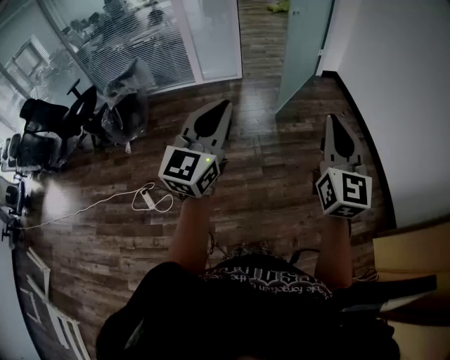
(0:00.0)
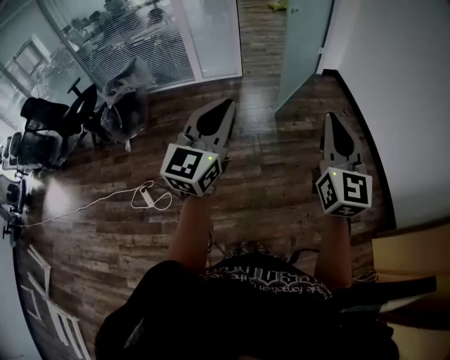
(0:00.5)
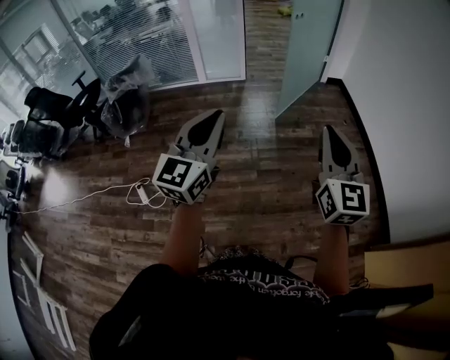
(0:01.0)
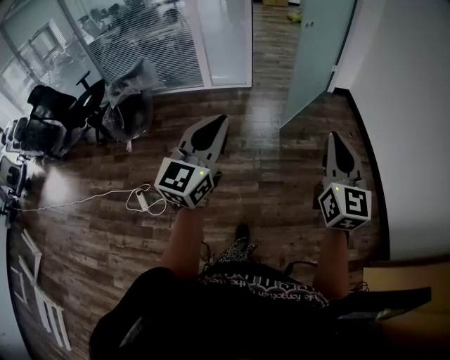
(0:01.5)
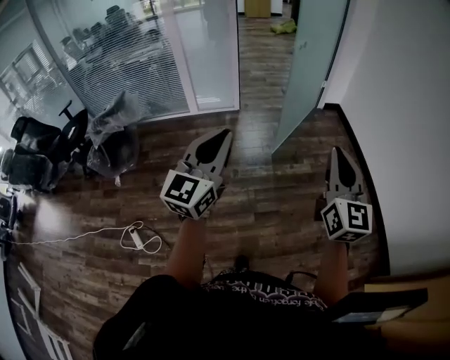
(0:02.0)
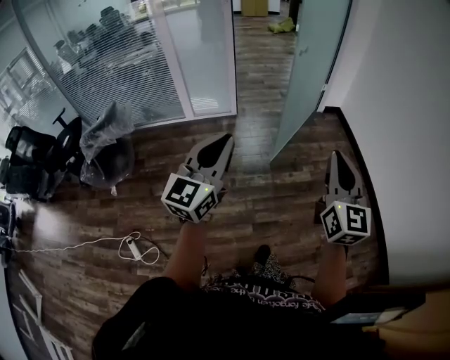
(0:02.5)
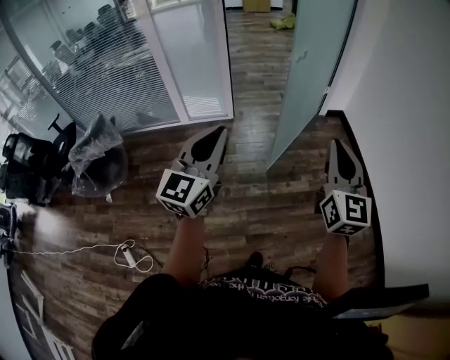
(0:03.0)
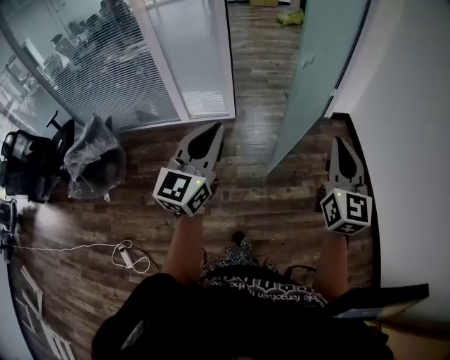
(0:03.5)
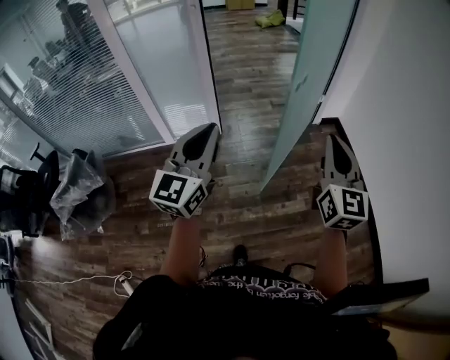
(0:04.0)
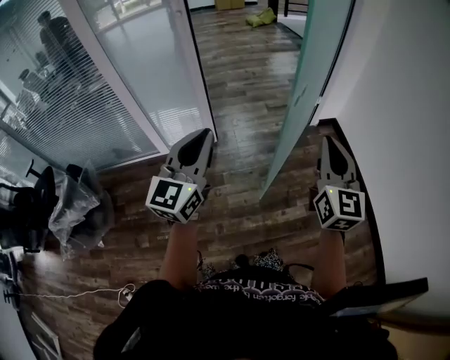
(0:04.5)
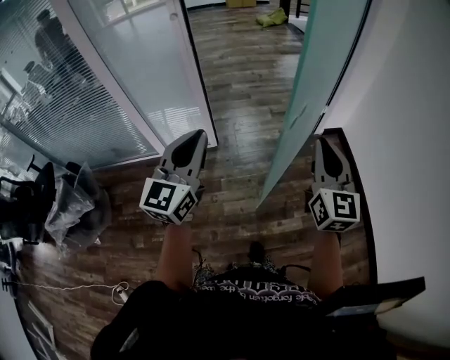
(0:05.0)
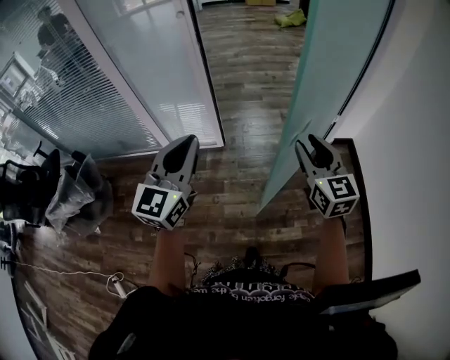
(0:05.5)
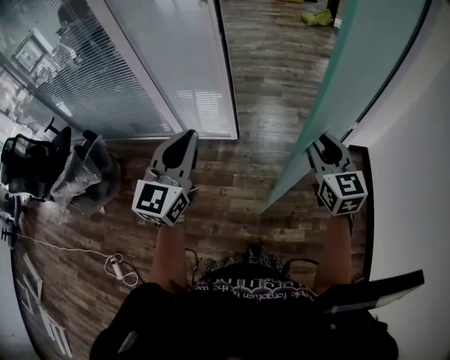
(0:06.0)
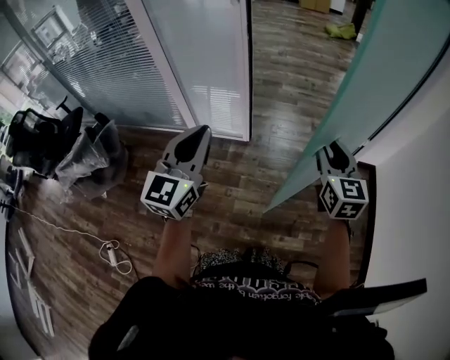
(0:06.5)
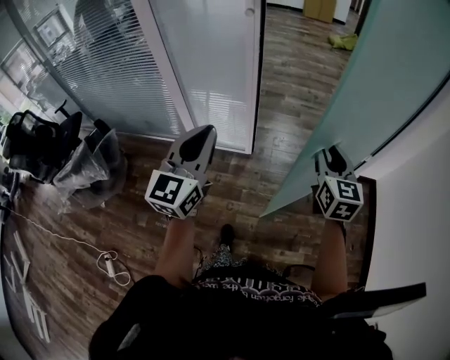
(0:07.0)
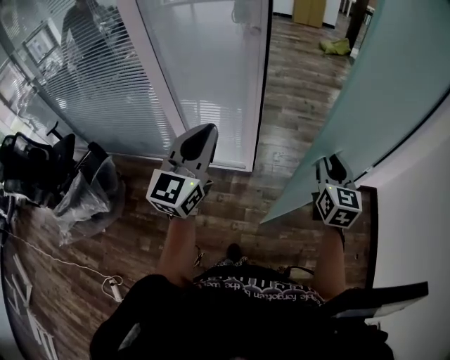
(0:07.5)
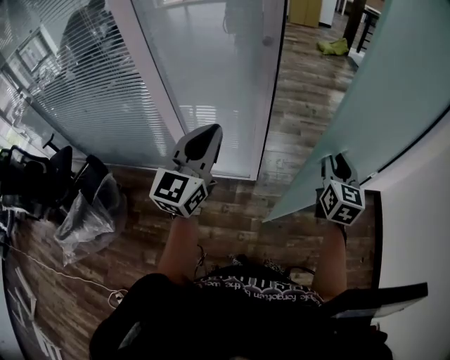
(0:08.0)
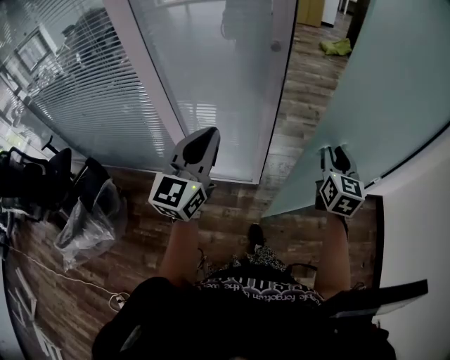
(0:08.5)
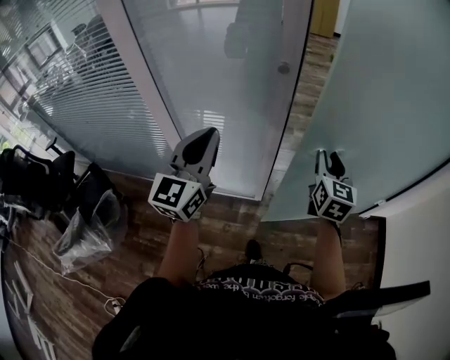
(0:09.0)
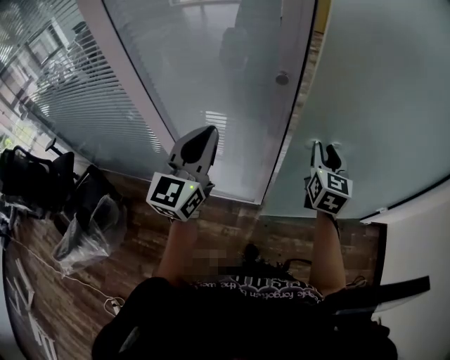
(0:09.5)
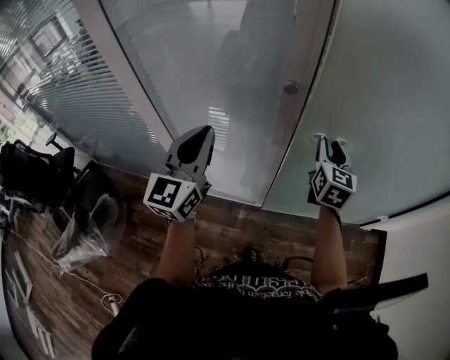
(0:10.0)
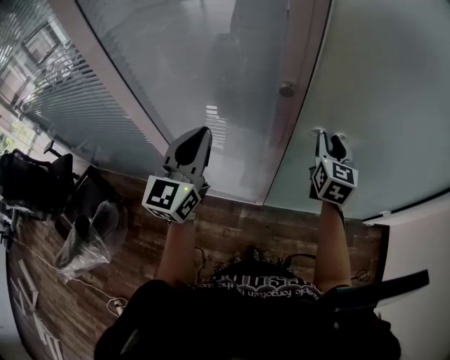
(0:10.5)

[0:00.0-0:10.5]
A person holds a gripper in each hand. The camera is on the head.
0:00.0 to 0:02.0: The two grippers go roughly 25 cm forward.
0:02.0 to 0:04.0: The two grippers travel together, forward, approximately 50 cm.
0:04.0 to 0:06.5: The right gripper is displaced forward by about 30 cm, turns by some 30 degrees, and opens up. Meanwhile the left gripper shifts some 20 cm forward, and changes its angle by some 20 degrees.
0:06.5 to 0:08.5: Both grippers move forward and to the left, about 30 cm.
0:08.5 to 0:10.5: The two grippers go about 20 cm forward.

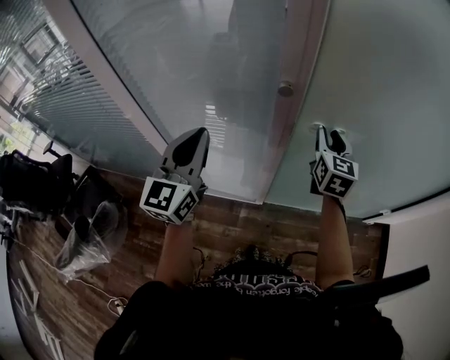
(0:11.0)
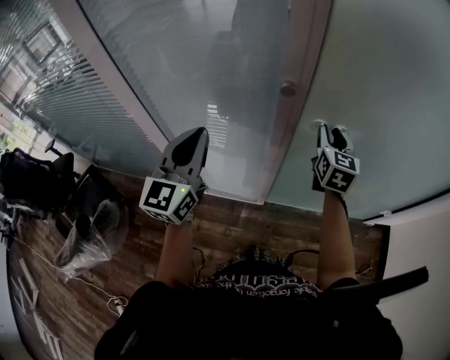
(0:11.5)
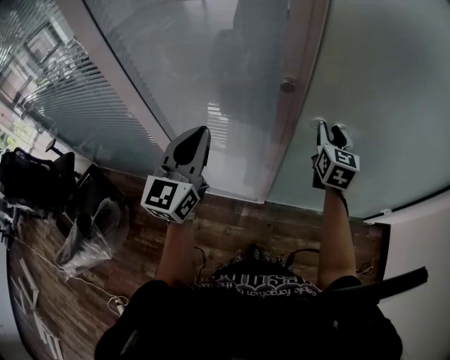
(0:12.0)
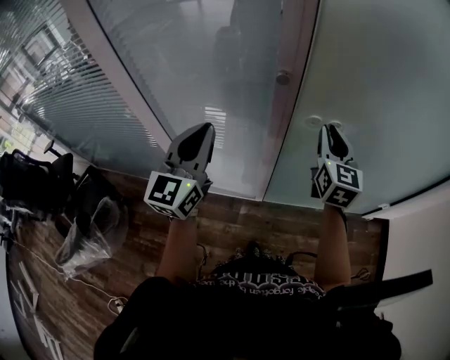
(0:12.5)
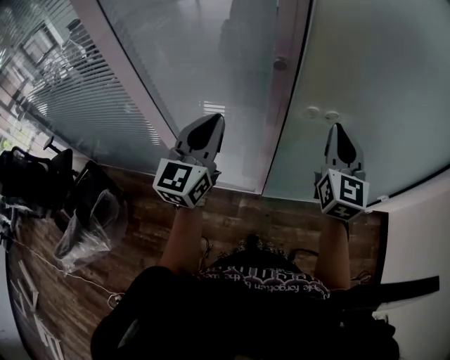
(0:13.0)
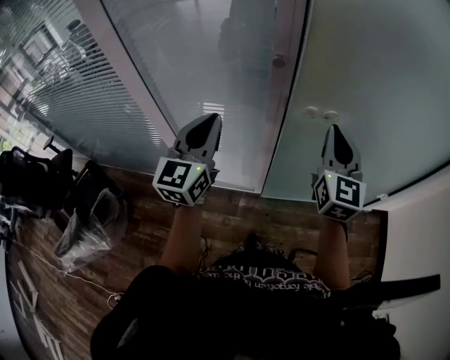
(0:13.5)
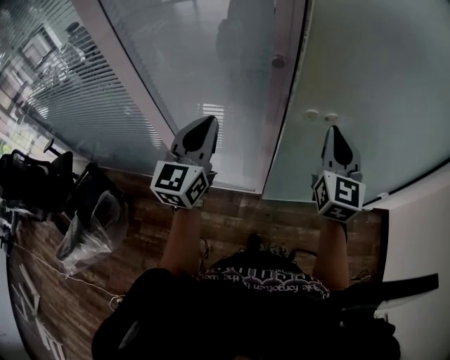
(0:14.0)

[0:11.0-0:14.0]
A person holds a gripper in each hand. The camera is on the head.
0:11.0 to 0:12.5: The right gripper travels backward by about 5 cm.
0:12.5 to 0:14.0: The right gripper is displaced backward by approximately 10 cm.

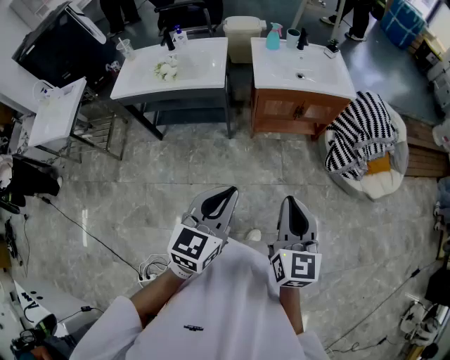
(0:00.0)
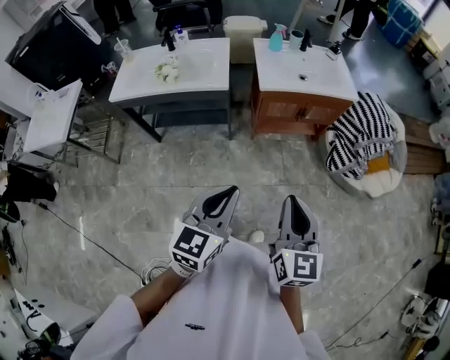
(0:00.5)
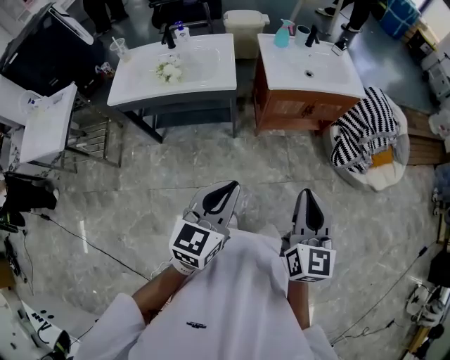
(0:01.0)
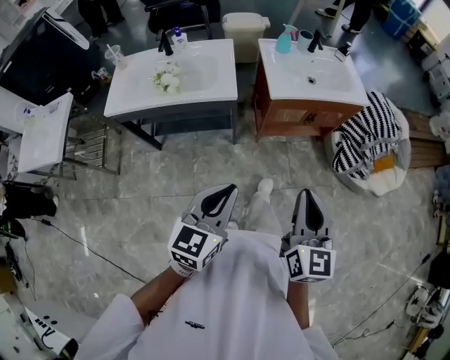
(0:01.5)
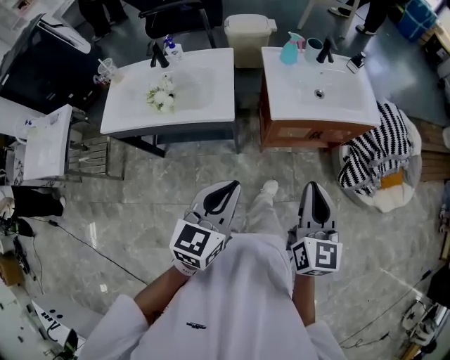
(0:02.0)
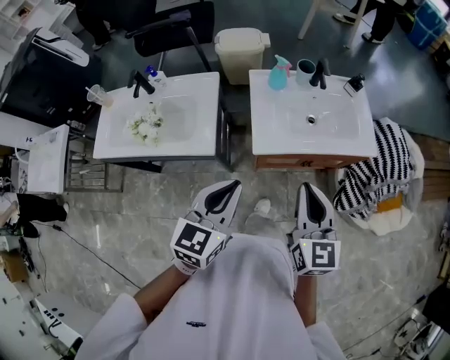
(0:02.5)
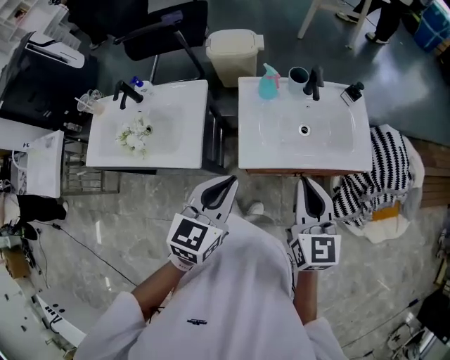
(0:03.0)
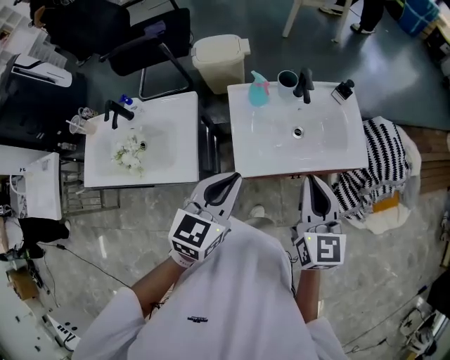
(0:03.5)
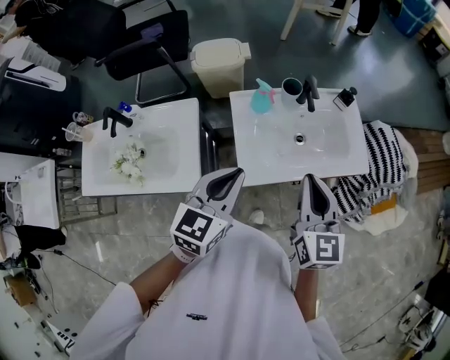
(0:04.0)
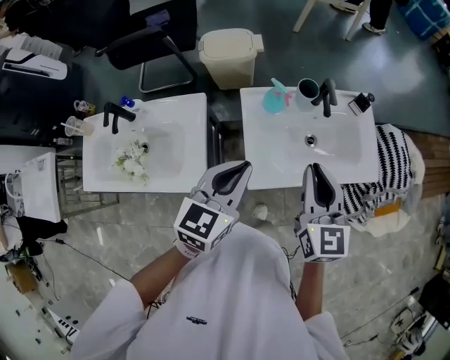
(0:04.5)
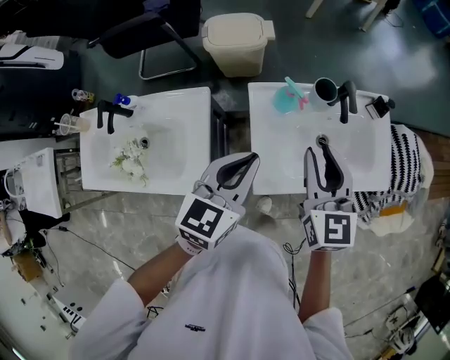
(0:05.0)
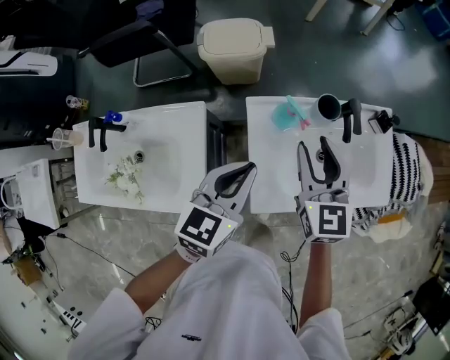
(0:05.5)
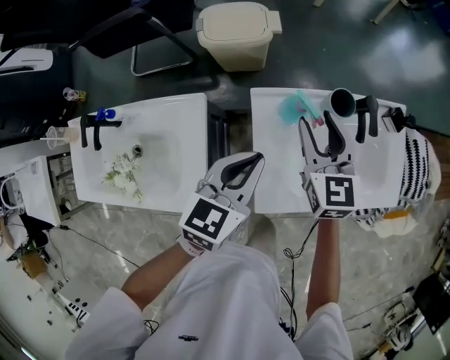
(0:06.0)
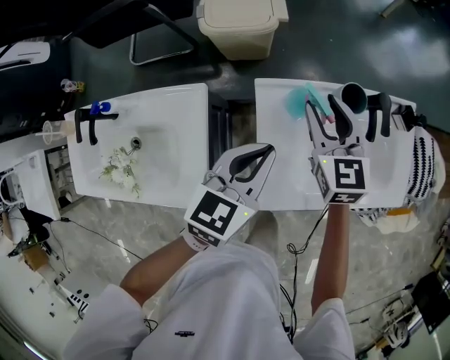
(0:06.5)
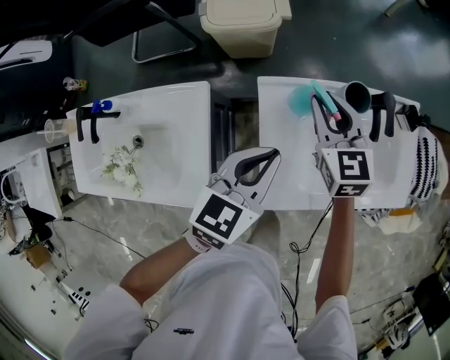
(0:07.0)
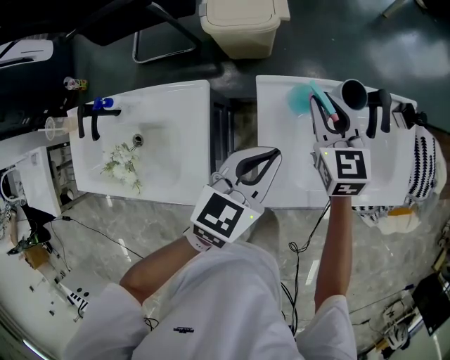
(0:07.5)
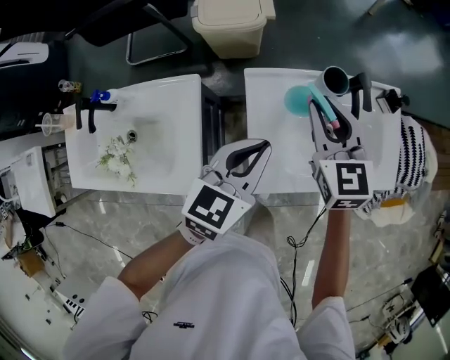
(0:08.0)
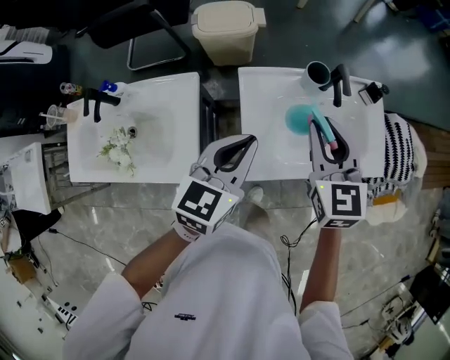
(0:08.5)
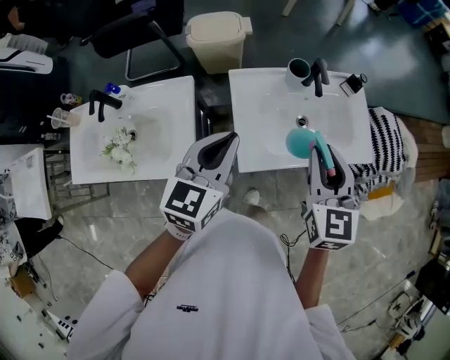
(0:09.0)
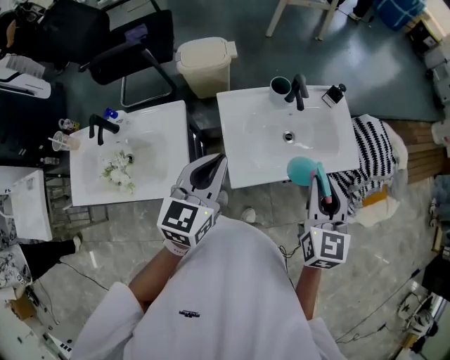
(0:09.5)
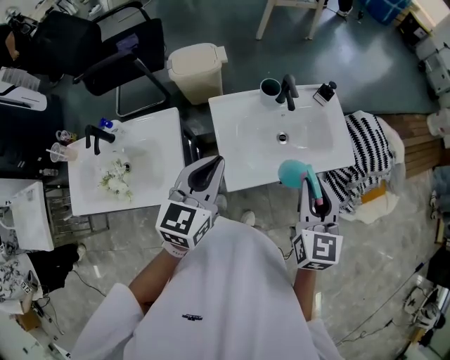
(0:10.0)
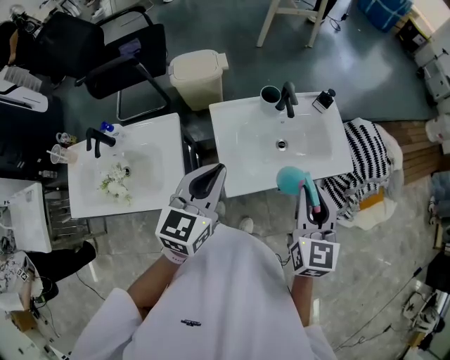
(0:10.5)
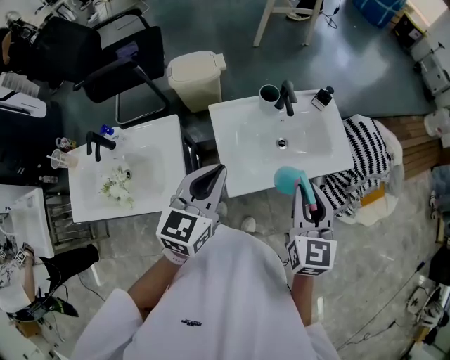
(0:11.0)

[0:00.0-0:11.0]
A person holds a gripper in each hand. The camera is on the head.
0:00.0 to 0:02.0: The left gripper heads forward and to the left, covering roughly 30 cm. Meanwhile the right gripper goes roughly 30 cm forward.
0:02.0 to 0:03.5: The two grippers go some 30 cm forward.
0:03.5 to 0:05.5: The left gripper shifts some 25 cm forward, to the left and downward. Meanwhile the right gripper heads forward and to the left, covering about 30 cm, and opens.
0:05.5 to 0:07.5: The left gripper is displaced downward by about 5 cm. Meanwhile the right gripper heads downward and forward, covering about 15 cm.
0:07.5 to 0:09.0: The right gripper is displaced backward, upward and to the right by some 30 cm; the left gripper moves upward and backward, roughly 20 cm.
0:09.0 to 0:11.0: The right gripper goes some 5 cm backward.

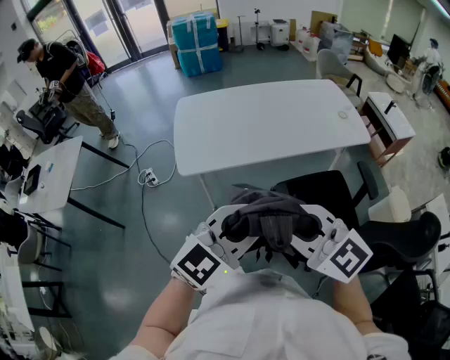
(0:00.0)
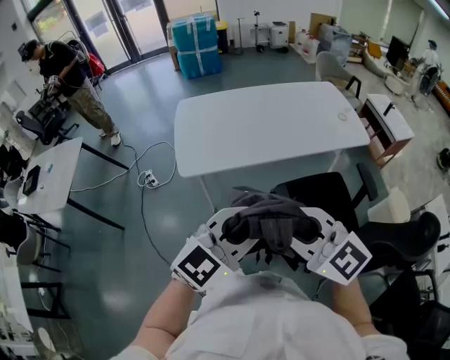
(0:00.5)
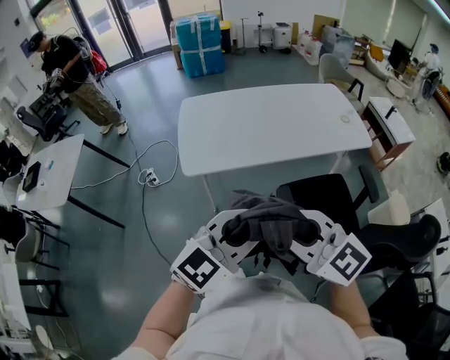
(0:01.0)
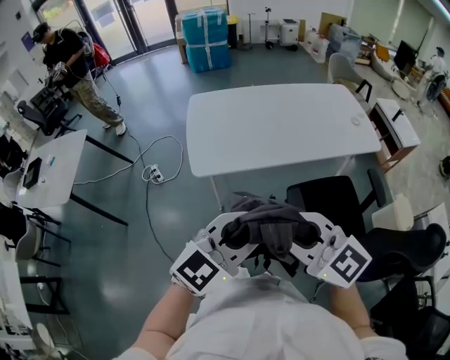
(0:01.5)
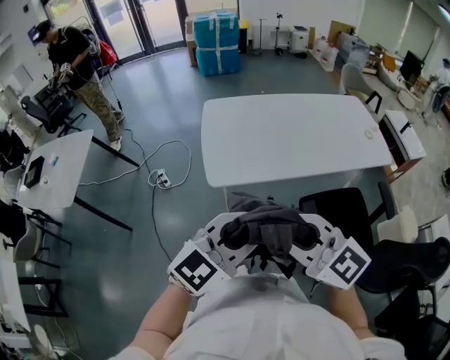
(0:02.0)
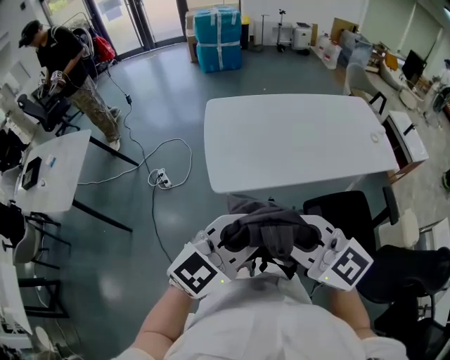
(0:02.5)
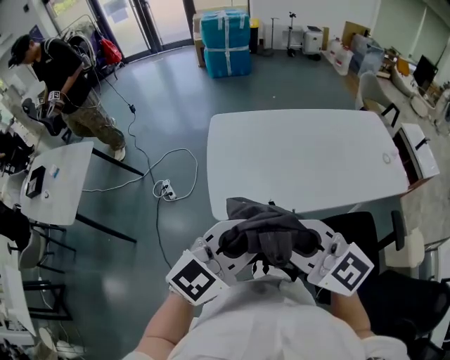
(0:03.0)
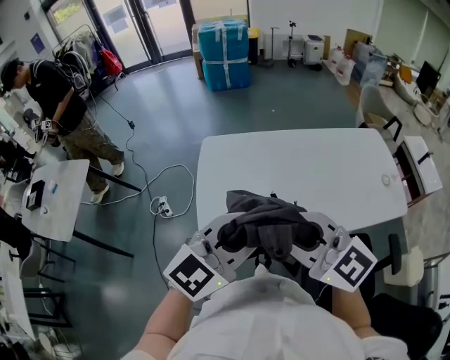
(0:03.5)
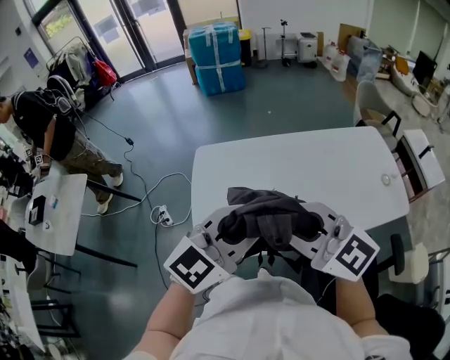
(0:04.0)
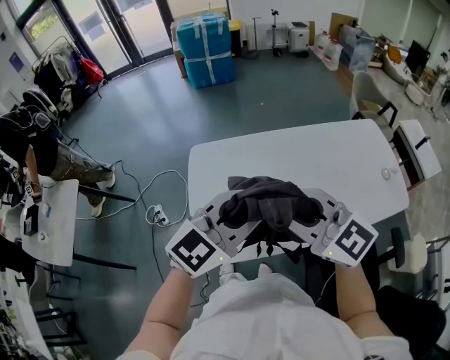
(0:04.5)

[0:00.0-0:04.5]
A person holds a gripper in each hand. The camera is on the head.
0:00.0 to 0:02.0: The two grippers go approximately 15 cm to the left.
0:02.0 to 0:04.5: The grippers both shift forward by about 35 cm.
